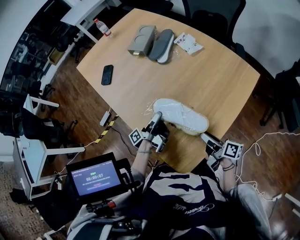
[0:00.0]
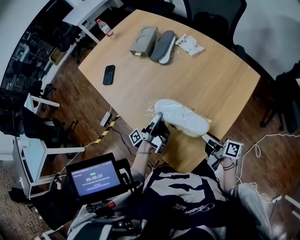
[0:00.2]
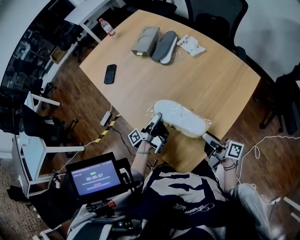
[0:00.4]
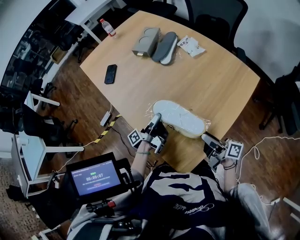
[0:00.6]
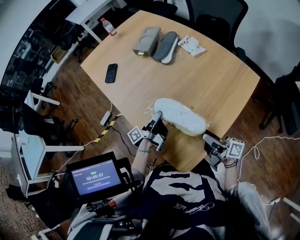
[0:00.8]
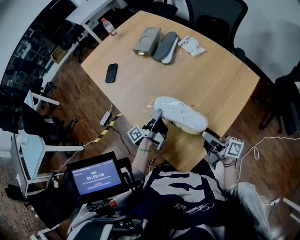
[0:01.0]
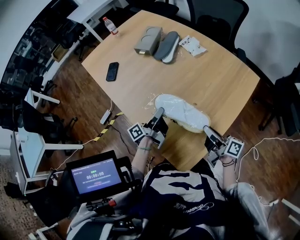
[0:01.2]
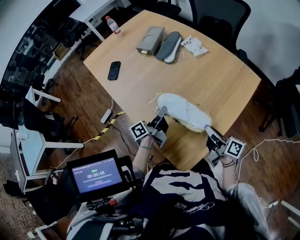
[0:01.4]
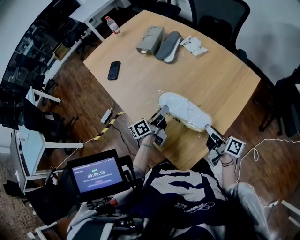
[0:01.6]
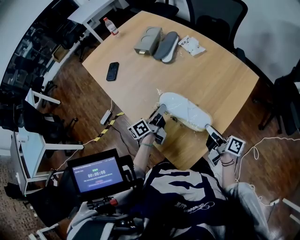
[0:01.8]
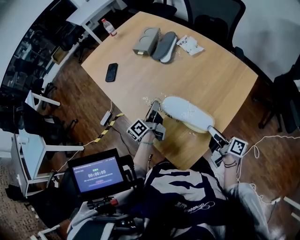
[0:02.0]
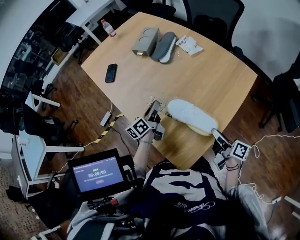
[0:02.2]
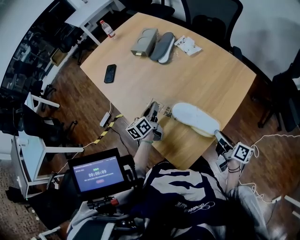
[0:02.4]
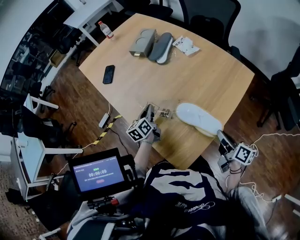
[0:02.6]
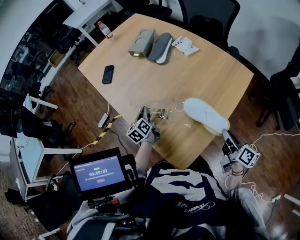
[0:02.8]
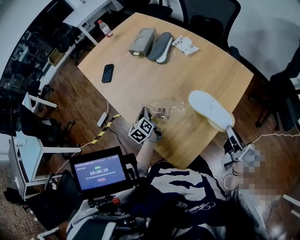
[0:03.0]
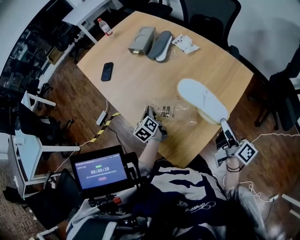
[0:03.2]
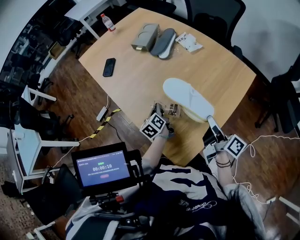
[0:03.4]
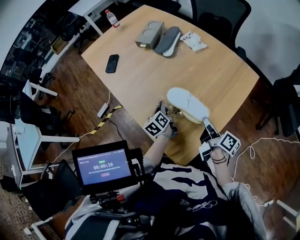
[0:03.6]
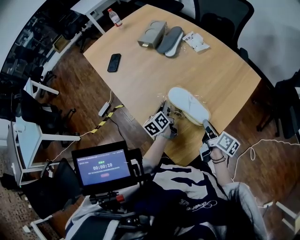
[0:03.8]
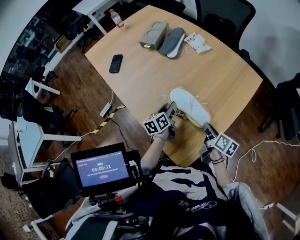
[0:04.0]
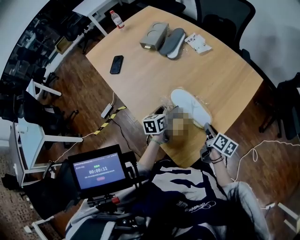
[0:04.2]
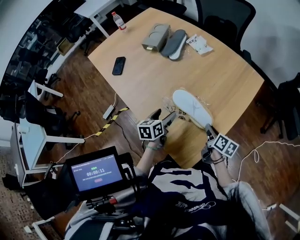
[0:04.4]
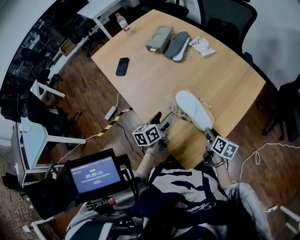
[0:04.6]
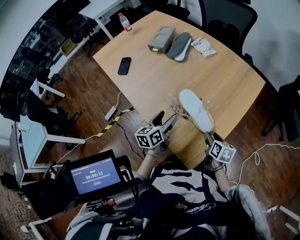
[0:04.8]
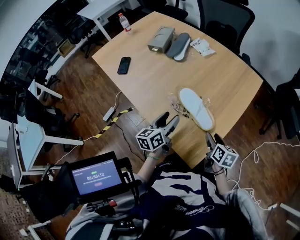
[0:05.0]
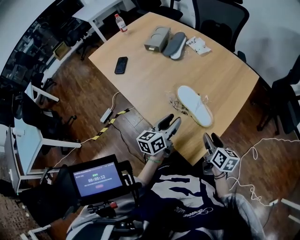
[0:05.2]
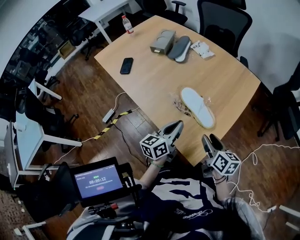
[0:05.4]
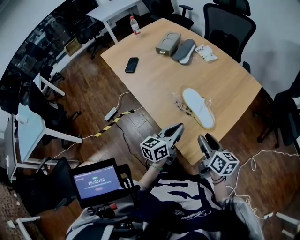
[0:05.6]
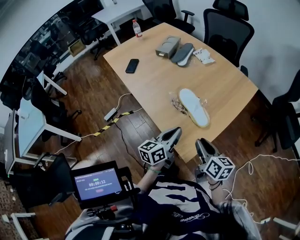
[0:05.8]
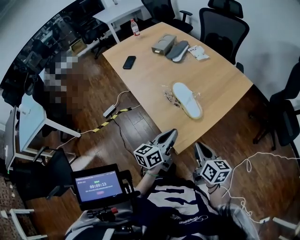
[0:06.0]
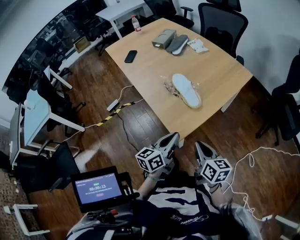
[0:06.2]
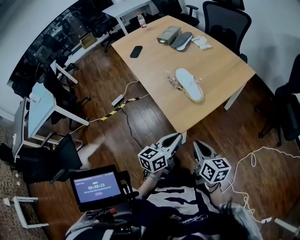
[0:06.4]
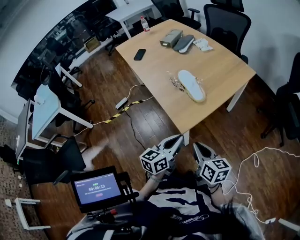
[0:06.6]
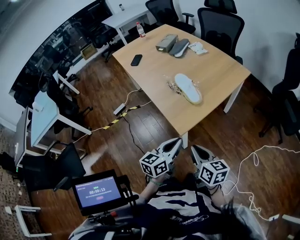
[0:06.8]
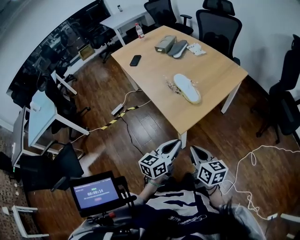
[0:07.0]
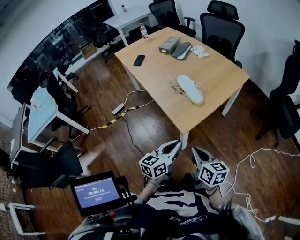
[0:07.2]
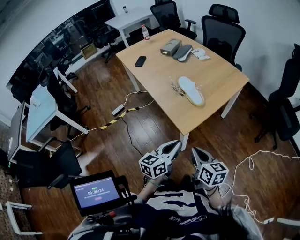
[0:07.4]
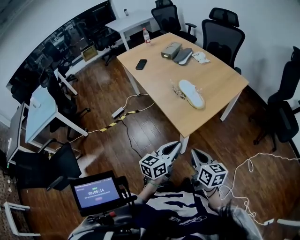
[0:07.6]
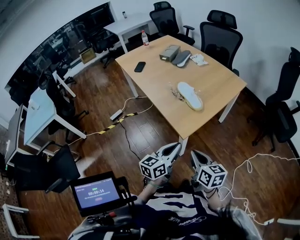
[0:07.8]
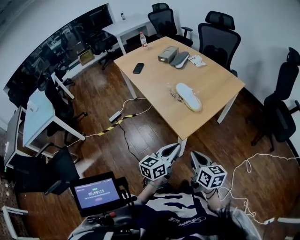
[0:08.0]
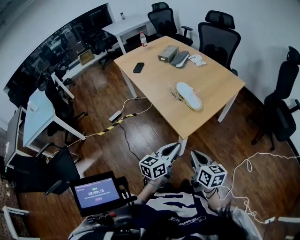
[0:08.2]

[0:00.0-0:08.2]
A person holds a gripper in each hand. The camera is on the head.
0:00.0 to 0:01.6: The right gripper closes, while the left gripper rotates some 40 degrees.
0:01.6 to 0:03.2: The left gripper goes some 10 cm to the left and downward, and turns by about 50 degrees, while the right gripper heads upward and to the right, covering roughly 10 cm.
0:03.2 to 0:05.0: The right gripper travels downward and to the left by about 20 cm, points its fingers some 40 degrees further downward, and opens; the left gripper heads backward and upward, covering about 15 cm, changes its angle by about 40 degrees, and opens its fingers.
0:05.0 to 0:06.6: The left gripper moves backward and to the right, about 35 cm, and closes its fingers, while the right gripper moves backward and upward, roughly 30 cm, turns by about 30 degrees, and closes up.
0:06.6 to 0:08.2: The right gripper moves approximately 5 cm. Meanwhile the left gripper moves approximately 5 cm.

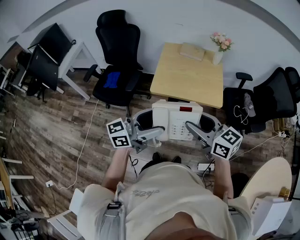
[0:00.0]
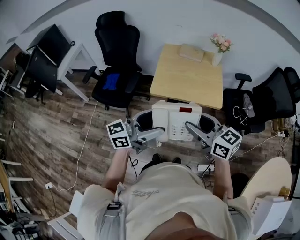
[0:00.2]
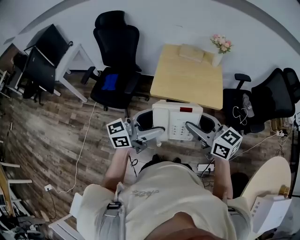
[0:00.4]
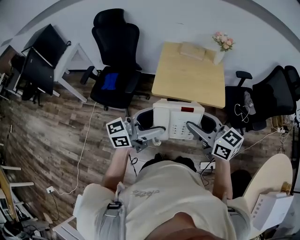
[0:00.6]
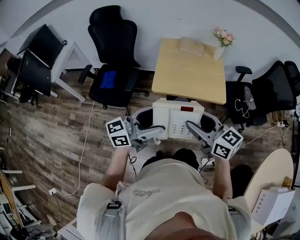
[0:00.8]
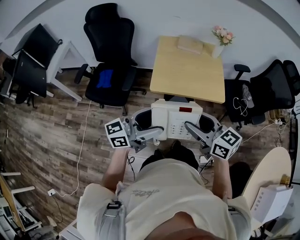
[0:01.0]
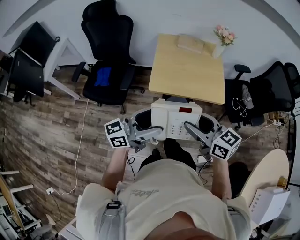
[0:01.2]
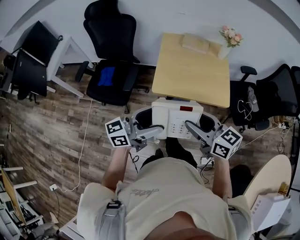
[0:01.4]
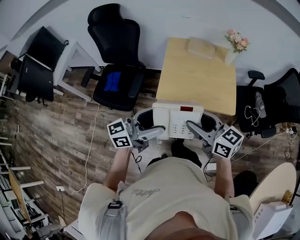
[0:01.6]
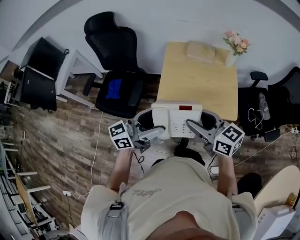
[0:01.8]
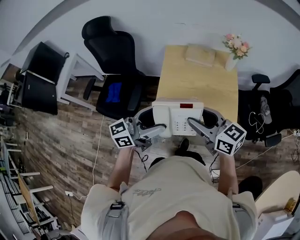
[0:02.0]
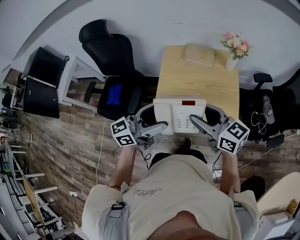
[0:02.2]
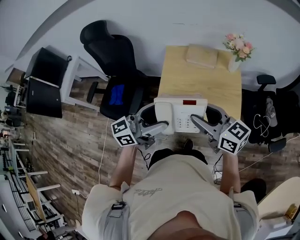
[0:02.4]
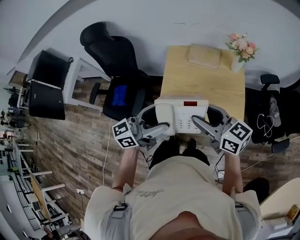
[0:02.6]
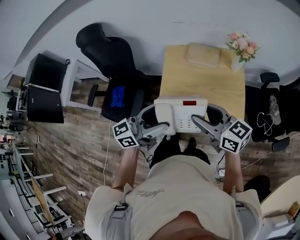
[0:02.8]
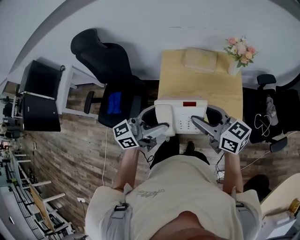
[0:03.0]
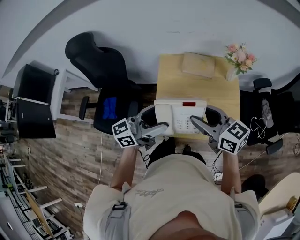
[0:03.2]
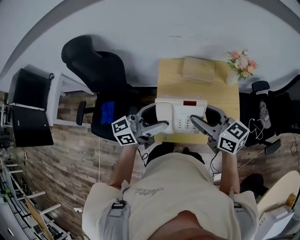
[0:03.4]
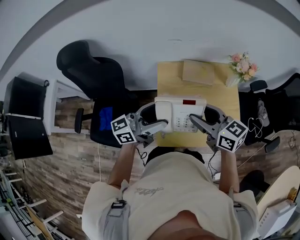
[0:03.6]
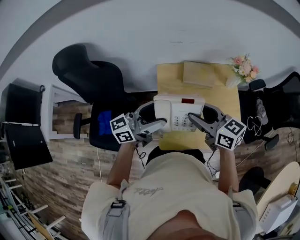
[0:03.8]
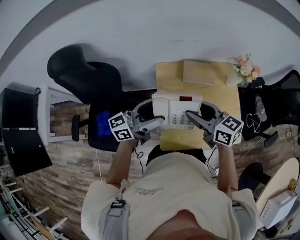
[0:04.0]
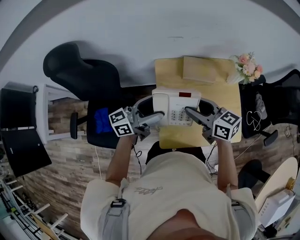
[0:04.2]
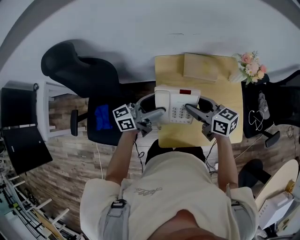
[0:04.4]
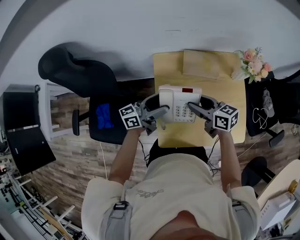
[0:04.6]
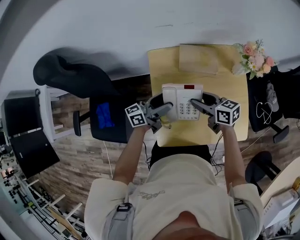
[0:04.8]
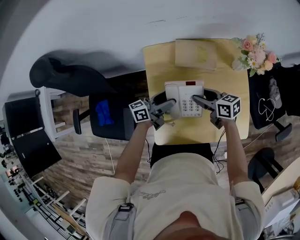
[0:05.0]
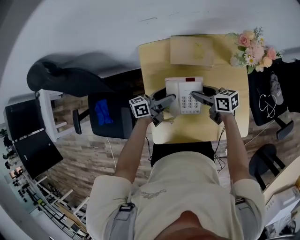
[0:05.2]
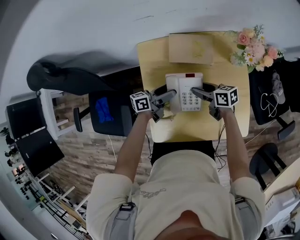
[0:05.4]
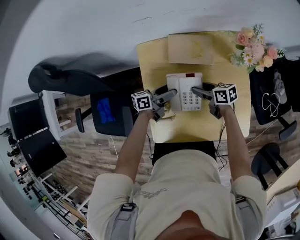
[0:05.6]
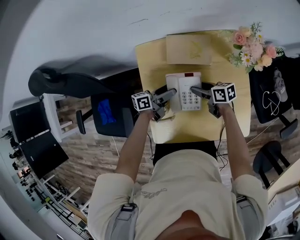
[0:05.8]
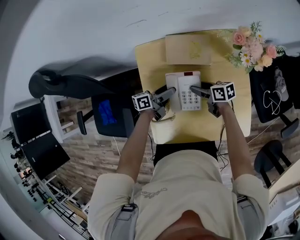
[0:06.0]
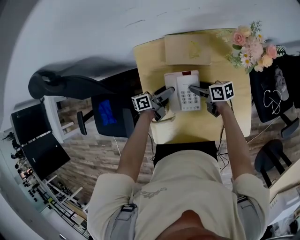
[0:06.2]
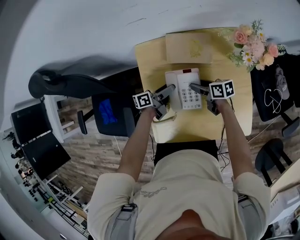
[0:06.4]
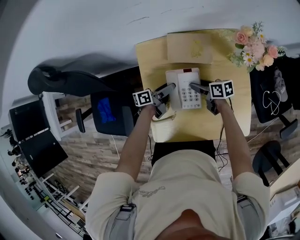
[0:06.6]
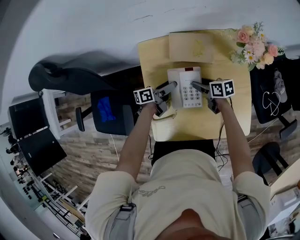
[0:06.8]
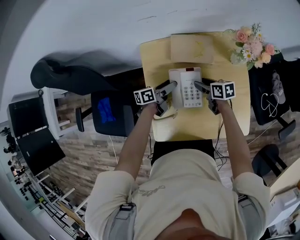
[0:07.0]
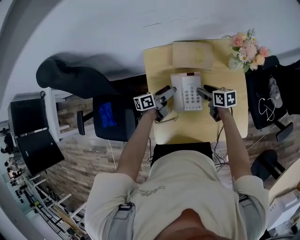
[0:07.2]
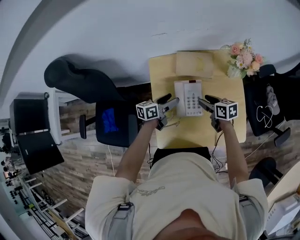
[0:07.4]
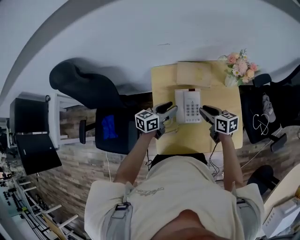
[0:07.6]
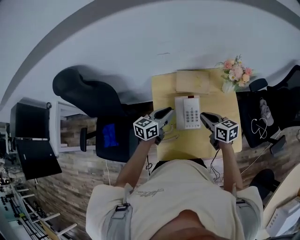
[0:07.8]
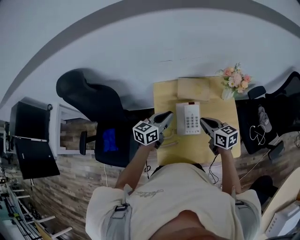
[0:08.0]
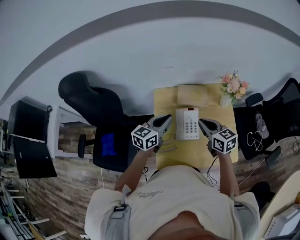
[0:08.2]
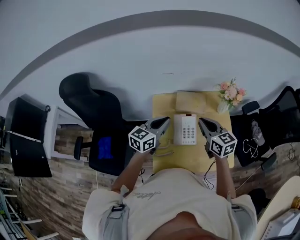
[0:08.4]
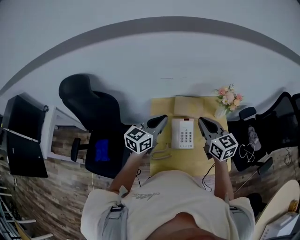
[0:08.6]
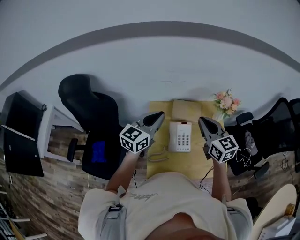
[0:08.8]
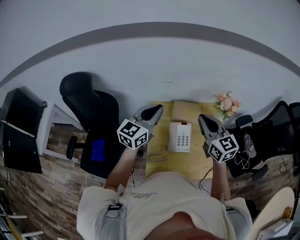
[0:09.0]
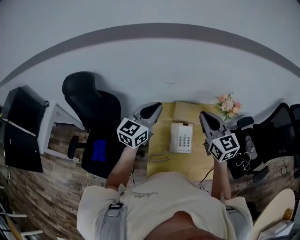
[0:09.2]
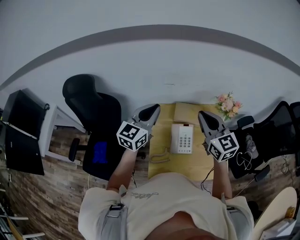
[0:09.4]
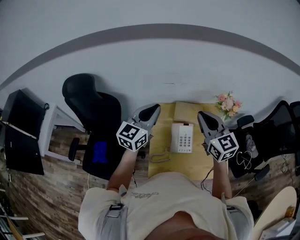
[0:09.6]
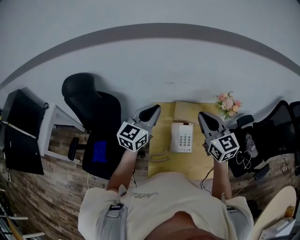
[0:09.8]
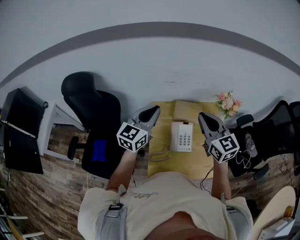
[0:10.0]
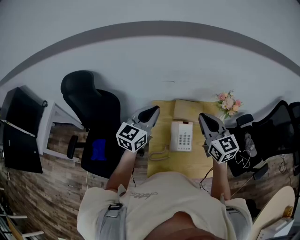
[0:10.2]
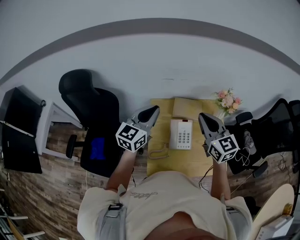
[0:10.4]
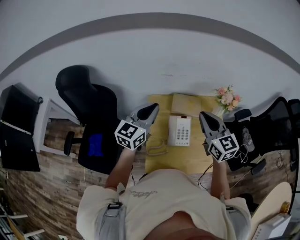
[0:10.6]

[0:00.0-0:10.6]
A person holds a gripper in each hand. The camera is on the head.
0:00.0 to 0:01.6: The two grippers go about 15 cm forward and to the left.
0:01.6 to 0:03.0: Both grippers travel together forward, approximately 25 cm.
0:03.0 to 0:04.6: The left gripper heads forward and downward, covering some 30 cm; the right gripper travels forward, downward and to the left by about 25 cm, and rotates about 20 degrees.
0:04.6 to 0:06.0: Both grippers move downward and to the right, about 25 cm. The right gripper rotates some 20 degrees; the left gripper swivels some 30 degrees.
0:06.0 to 0:07.6: The left gripper shifts approximately 15 cm upward, swivels some 30 degrees, and closes its fingers. Meanwhile the right gripper is displaced upward and backward by about 15 cm, swivels about 20 degrees, and closes up.
0:07.6 to 0:09.0: The grippers both shift upward by roughly 25 cm. The left gripper changes its angle by approximately 40 degrees, and closes up. The right gripper rotates some 40 degrees, and closes.
0:09.0 to 0:10.6: The grippers move only a little.

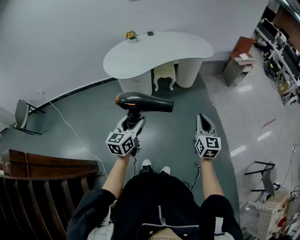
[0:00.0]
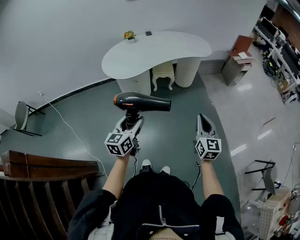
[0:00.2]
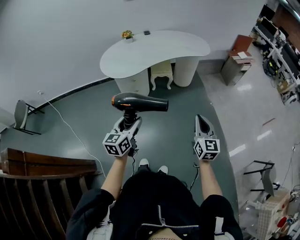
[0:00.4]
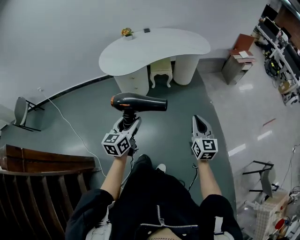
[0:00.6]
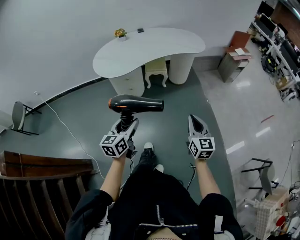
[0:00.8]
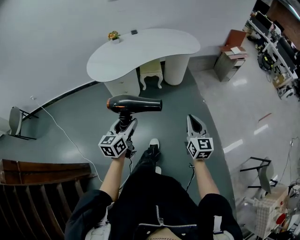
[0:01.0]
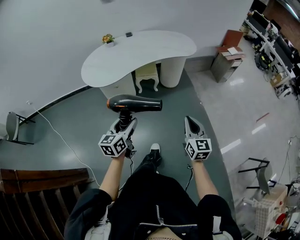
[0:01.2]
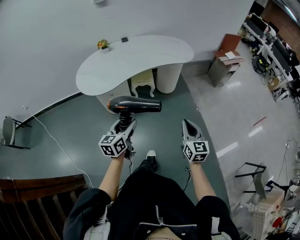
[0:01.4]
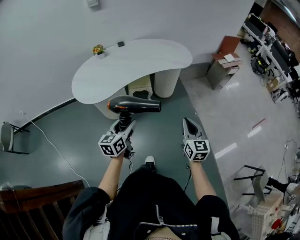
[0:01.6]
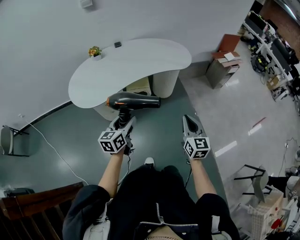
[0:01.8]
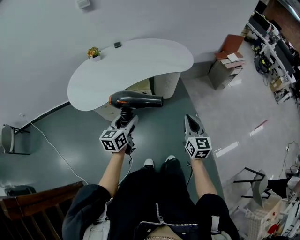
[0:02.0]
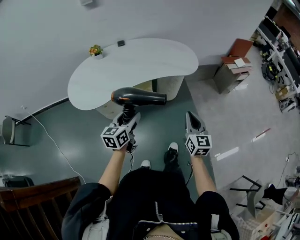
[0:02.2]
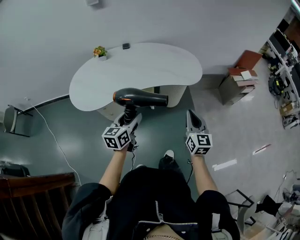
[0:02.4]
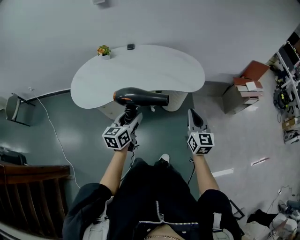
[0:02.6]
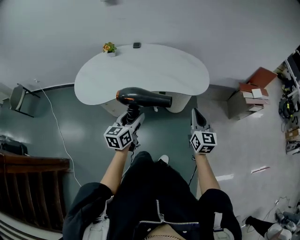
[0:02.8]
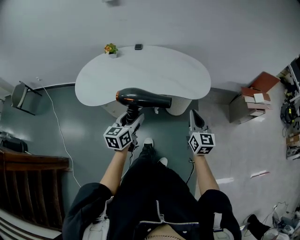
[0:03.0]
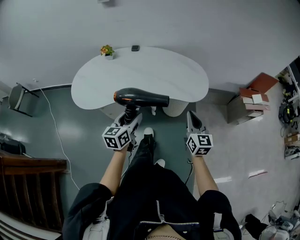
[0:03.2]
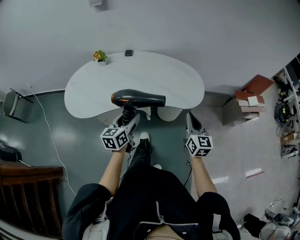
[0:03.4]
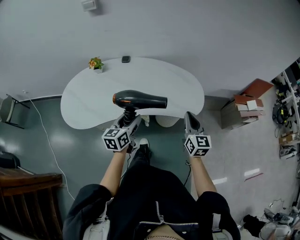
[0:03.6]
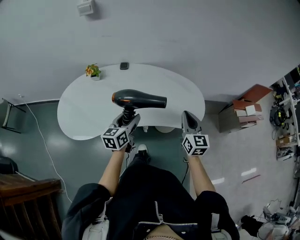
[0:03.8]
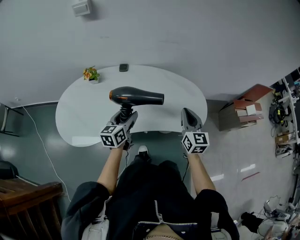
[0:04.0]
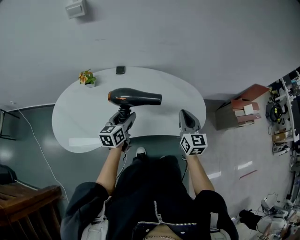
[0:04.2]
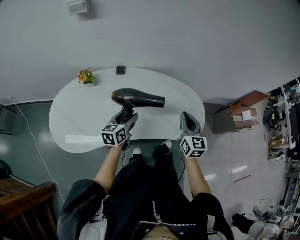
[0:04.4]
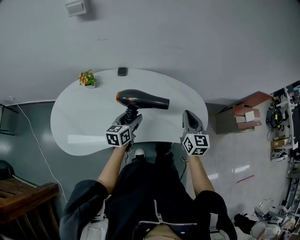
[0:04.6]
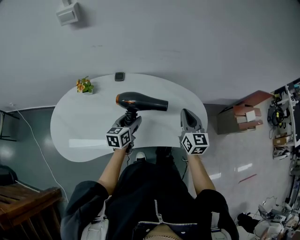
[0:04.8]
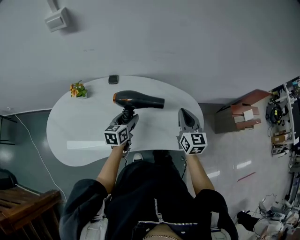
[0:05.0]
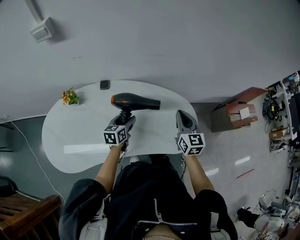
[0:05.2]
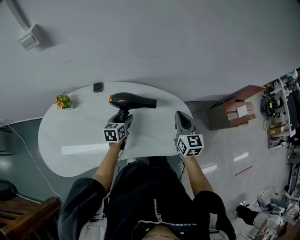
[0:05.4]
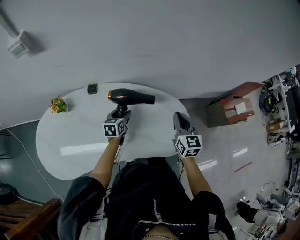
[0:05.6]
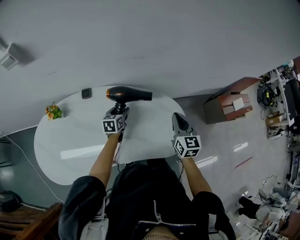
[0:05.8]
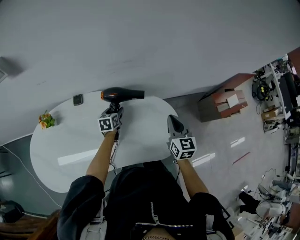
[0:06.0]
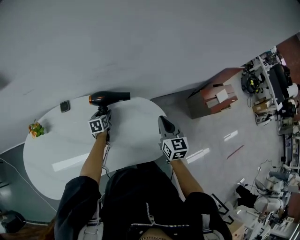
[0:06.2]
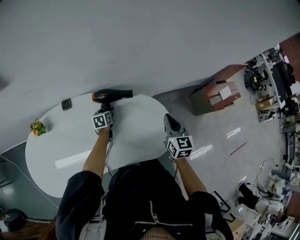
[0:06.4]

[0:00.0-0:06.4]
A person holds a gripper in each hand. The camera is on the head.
0:00.0 to 0:01.6: Both grippers travel together forward and to the right, approximately 25 cm.
0:01.6 to 0:03.2: The right gripper shifts approximately 35 cm forward; the left gripper heads forward and to the right, covering some 30 cm.
0:03.2 to 0:04.8: The grippers both shift forward by roughly 35 cm.
0:04.8 to 0:06.4: The right gripper moves to the right and forward, roughly 20 cm; the left gripper heads forward, downward and to the right, covering about 30 cm, and rotates some 20 degrees.
